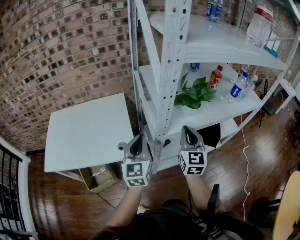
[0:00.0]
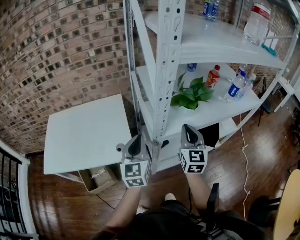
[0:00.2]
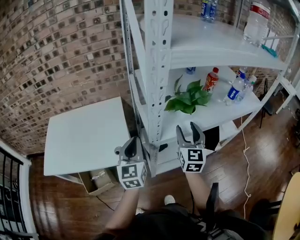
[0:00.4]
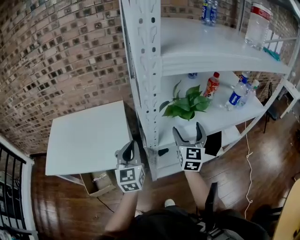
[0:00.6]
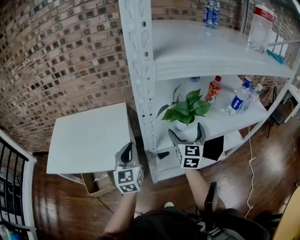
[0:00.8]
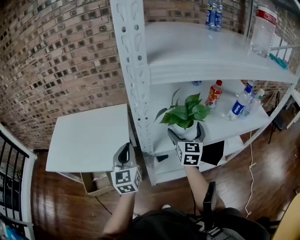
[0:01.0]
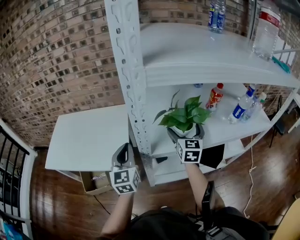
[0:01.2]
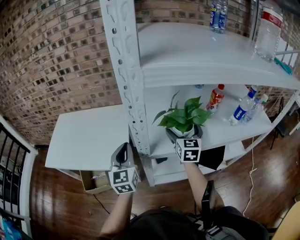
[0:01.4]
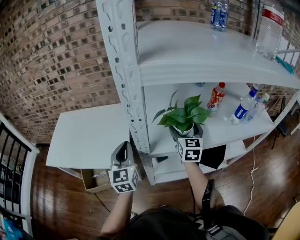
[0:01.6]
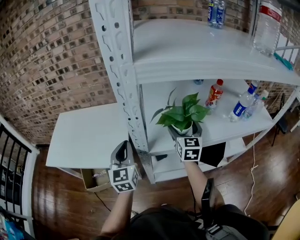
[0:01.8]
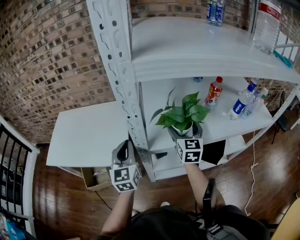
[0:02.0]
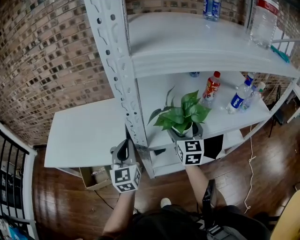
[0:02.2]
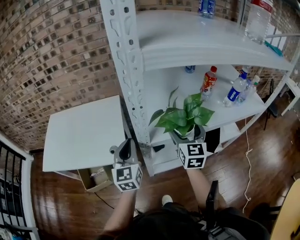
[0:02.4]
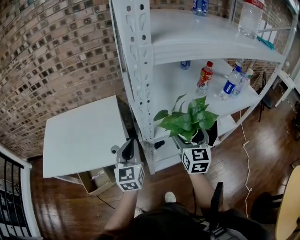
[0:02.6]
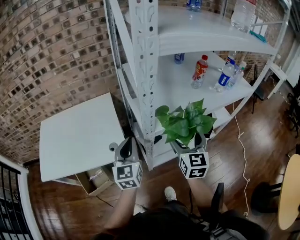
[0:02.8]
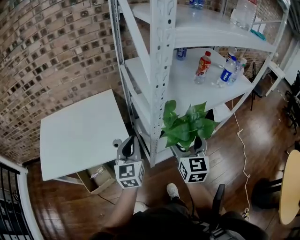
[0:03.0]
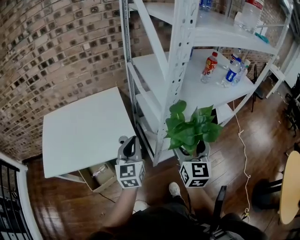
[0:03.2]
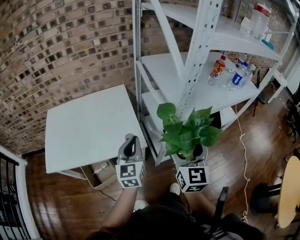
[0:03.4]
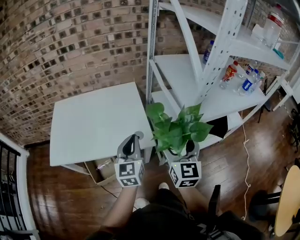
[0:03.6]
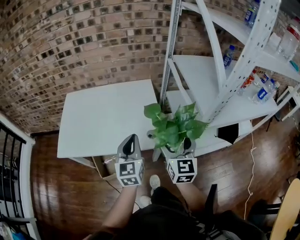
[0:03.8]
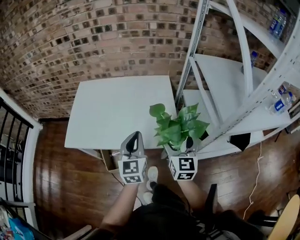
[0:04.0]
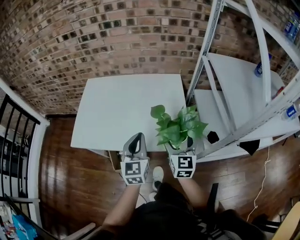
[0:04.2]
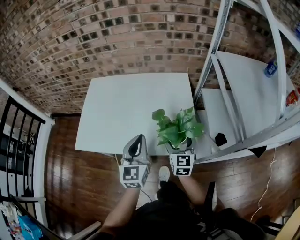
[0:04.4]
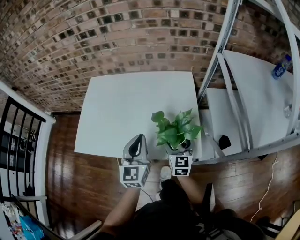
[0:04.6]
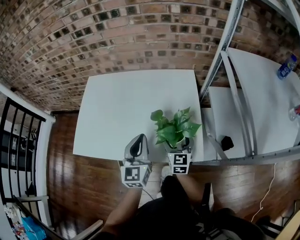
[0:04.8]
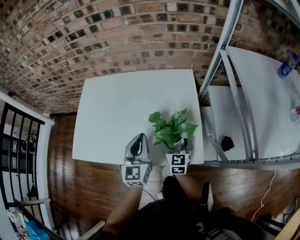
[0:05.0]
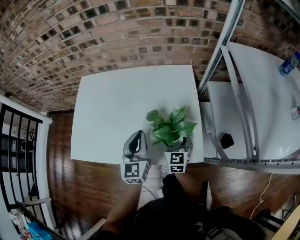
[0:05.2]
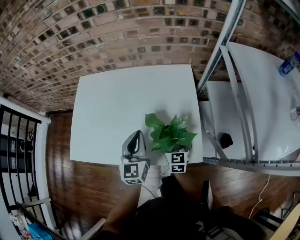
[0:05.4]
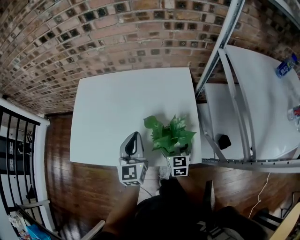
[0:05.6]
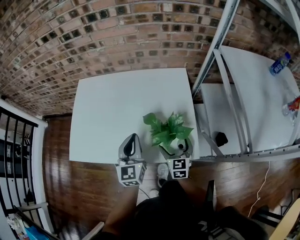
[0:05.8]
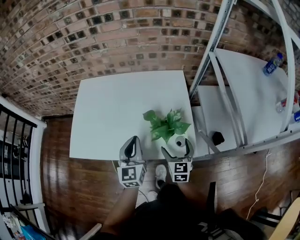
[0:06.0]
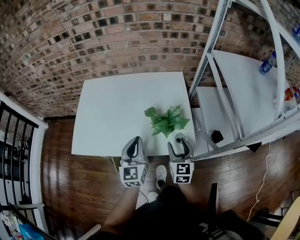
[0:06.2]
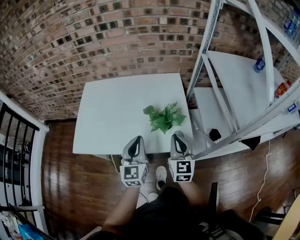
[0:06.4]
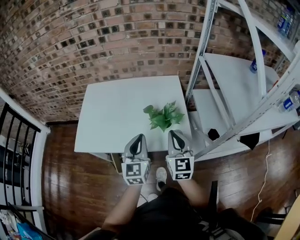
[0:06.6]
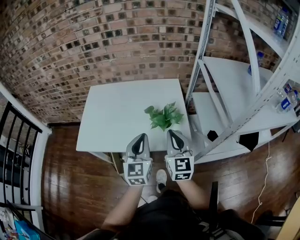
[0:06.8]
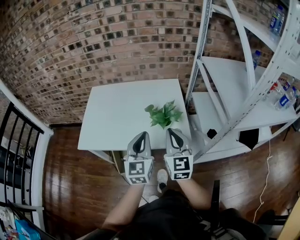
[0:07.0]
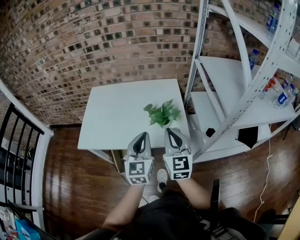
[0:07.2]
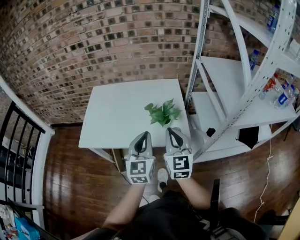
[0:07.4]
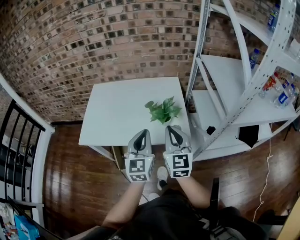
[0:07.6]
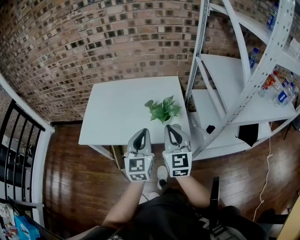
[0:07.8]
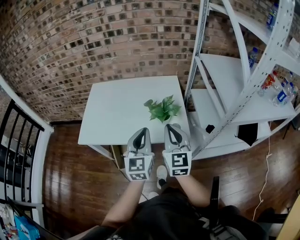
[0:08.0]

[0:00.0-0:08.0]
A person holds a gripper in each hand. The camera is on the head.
0:00.0 to 0:01.6: The right gripper heads forward and to the right, covering some 15 cm, and opens its fingers.
0:01.6 to 0:03.2: The right gripper shifts about 25 cm backward and to the left. Meanwhile the left gripper heads to the left, backward and downward, covering approximately 10 cm, and turns by roughly 20 degrees.
0:03.2 to 0:04.8: The right gripper heads to the left, downward and forward, covering some 50 cm, and turns by some 30 degrees, while the left gripper is displaced to the left and forward by about 30 cm, and turns by roughly 20 degrees.
0:04.8 to 0:06.4: The left gripper moves backward, about 5 cm. Meanwhile the right gripper moves upward and backward, about 15 cm, and closes its fingers.
0:06.4 to 0:08.0: The left gripper is displaced backward and upward by approximately 10 cm; the right gripper moves upward and backward, about 15 cm.

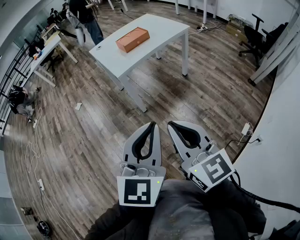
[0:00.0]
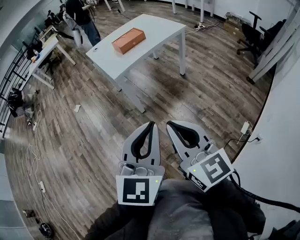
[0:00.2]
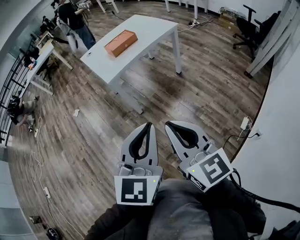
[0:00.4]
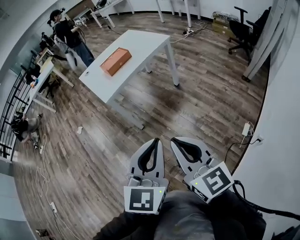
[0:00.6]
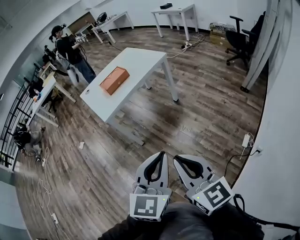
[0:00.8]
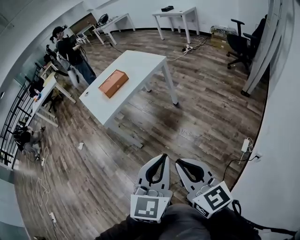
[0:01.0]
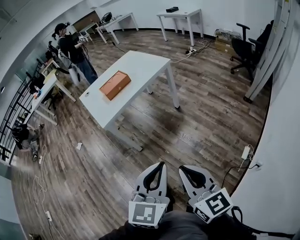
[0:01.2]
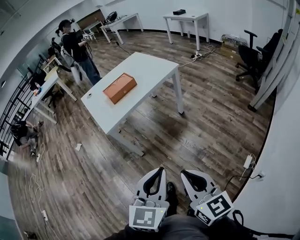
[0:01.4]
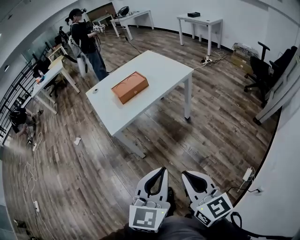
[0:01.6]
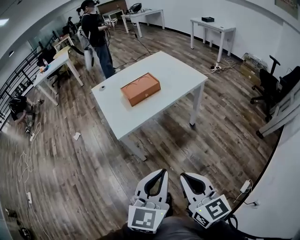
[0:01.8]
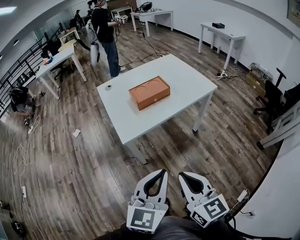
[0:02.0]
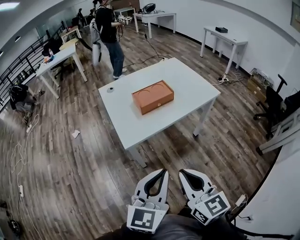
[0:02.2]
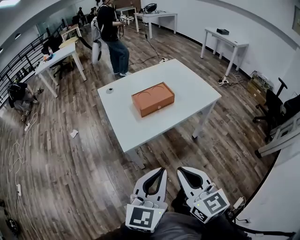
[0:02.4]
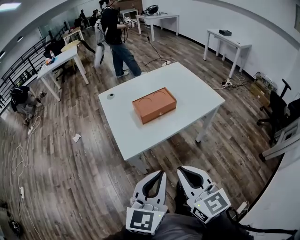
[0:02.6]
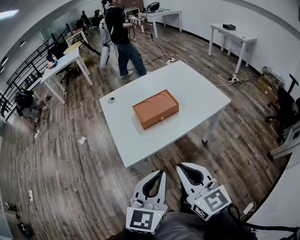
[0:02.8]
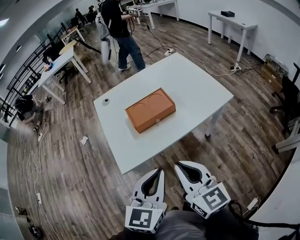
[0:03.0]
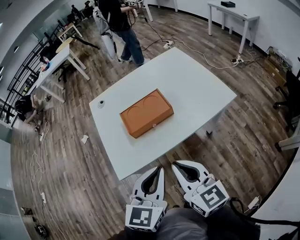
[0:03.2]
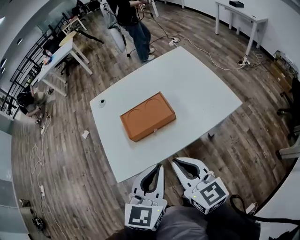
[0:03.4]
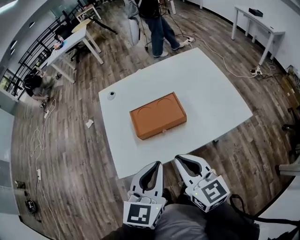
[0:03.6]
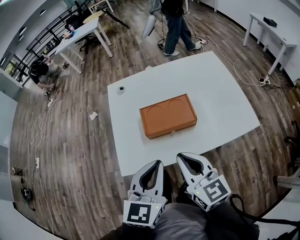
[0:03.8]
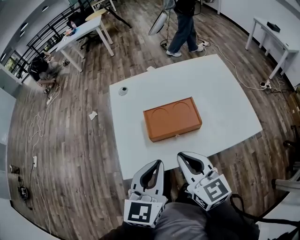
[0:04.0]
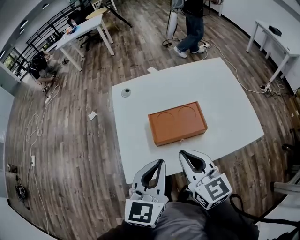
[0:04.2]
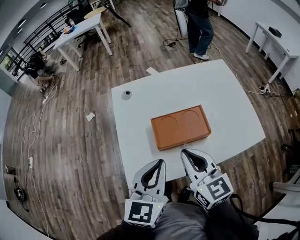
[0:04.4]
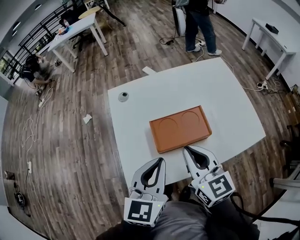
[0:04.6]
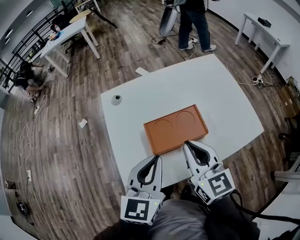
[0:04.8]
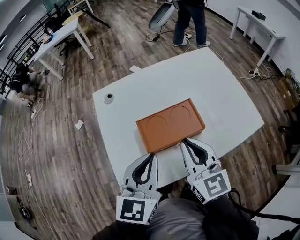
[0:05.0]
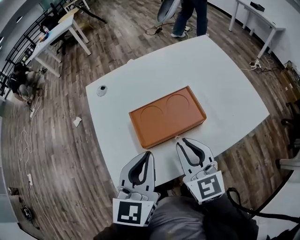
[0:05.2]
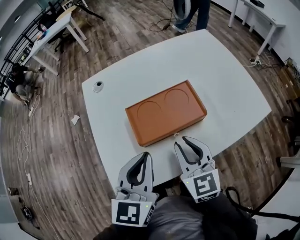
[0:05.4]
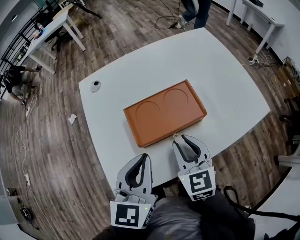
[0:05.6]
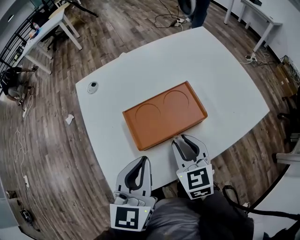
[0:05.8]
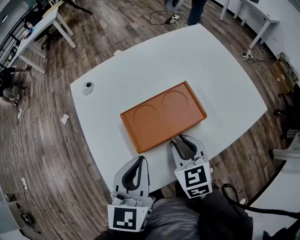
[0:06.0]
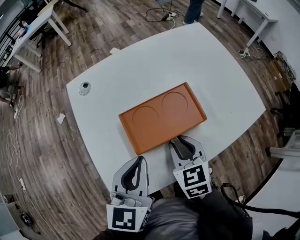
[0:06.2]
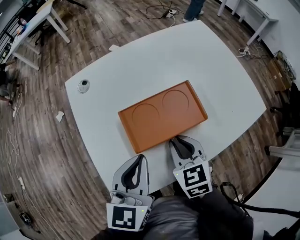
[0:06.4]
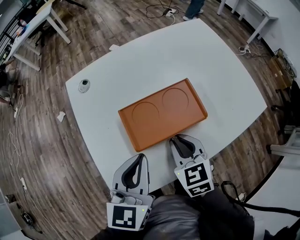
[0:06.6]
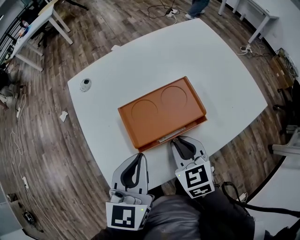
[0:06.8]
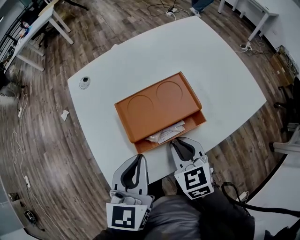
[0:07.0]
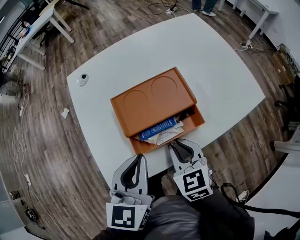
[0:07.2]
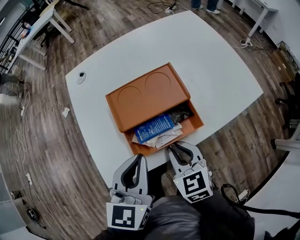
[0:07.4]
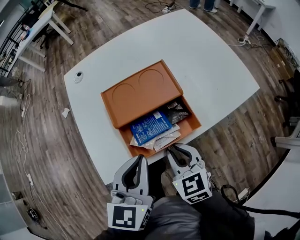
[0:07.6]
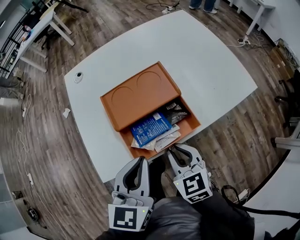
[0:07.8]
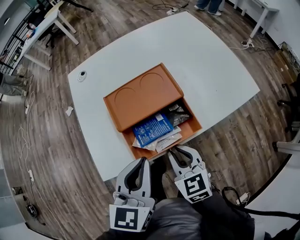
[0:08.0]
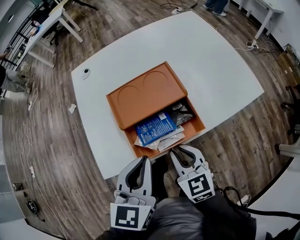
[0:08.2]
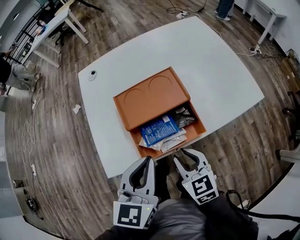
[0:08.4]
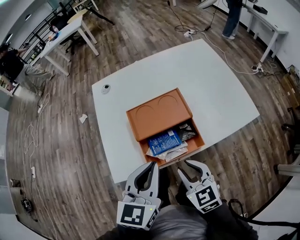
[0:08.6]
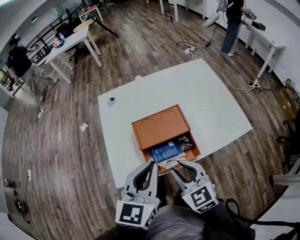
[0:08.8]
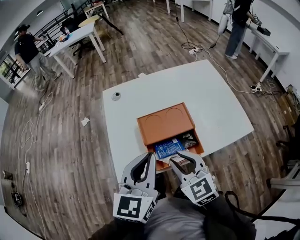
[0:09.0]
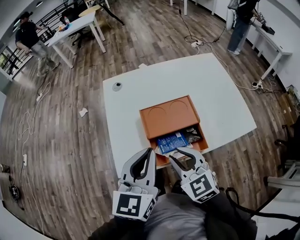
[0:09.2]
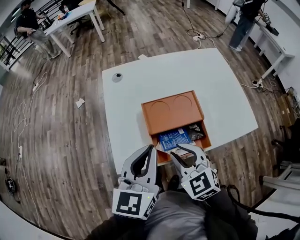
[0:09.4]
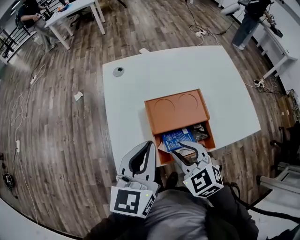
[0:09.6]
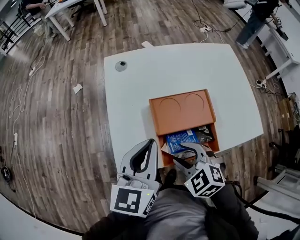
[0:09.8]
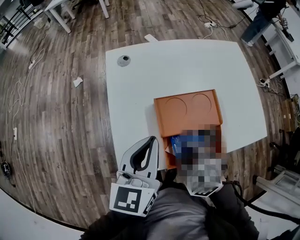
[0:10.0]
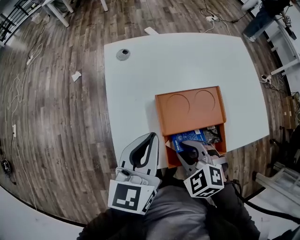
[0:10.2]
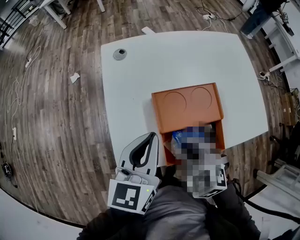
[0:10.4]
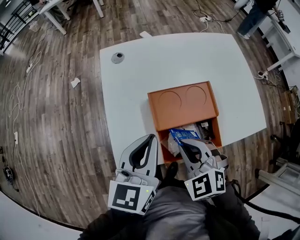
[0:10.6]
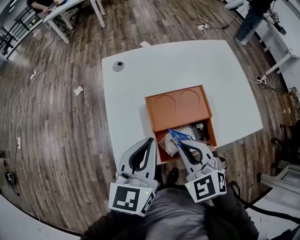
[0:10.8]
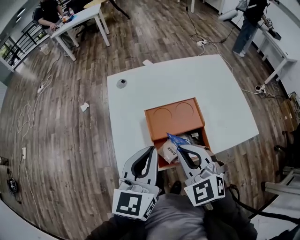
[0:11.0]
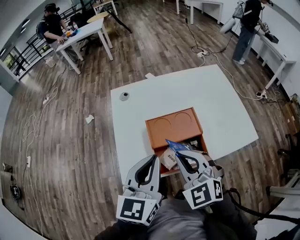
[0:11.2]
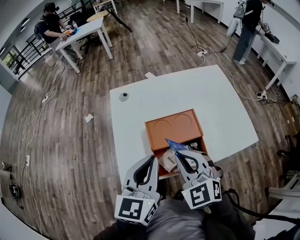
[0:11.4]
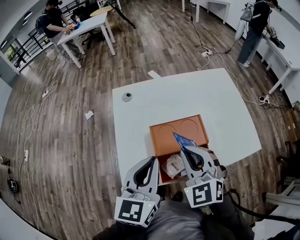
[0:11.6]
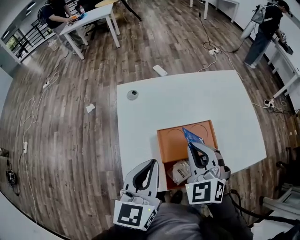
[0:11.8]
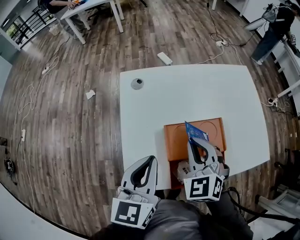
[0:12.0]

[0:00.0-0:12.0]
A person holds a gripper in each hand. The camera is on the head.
0:00.0 to 0:01.6: The left gripper is displaced forward and to the right by approximately 20 cm. The right gripper travels forward, to the right and downward by roughly 20 cm.
0:01.6 to 0:03.0: Both grippers travel together forward, roughly 35 cm.
0:03.0 to 0:04.4: Both grippers travel together forward, approximately 20 cm.
0:04.4 to 0:06.0: The left gripper heads downward, covering about 10 cm. Meanwhile the right gripper is displaced downward by roughly 20 cm, and turns by some 30 degrees.
0:06.0 to 0:07.6: The left gripper travels backward and to the right by roughly 10 cm. The right gripper shifts about 10 cm backward.
0:07.6 to 0:09.0: The grippers both shift upward by approximately 15 cm. The right gripper turns by some 20 degrees.
0:09.0 to 0:10.4: The left gripper is displaced downward, forward and to the left by roughly 15 cm. Meanwhile the right gripper is displaced downward and forward by about 10 cm, and turns by about 30 degrees.
0:10.4 to 0:12.0: The right gripper travels forward and upward by about 15 cm, and rotates approximately 20 degrees.

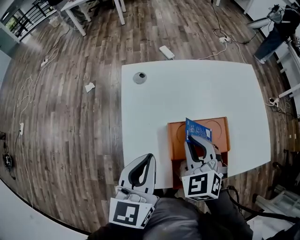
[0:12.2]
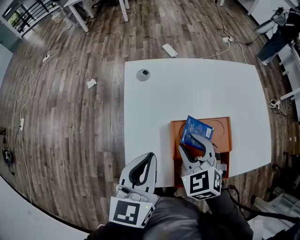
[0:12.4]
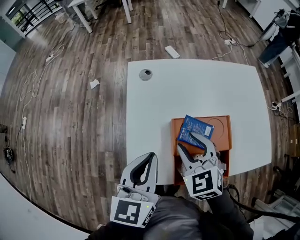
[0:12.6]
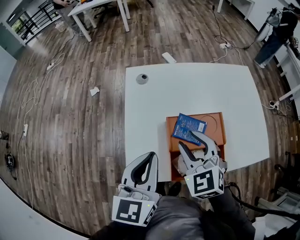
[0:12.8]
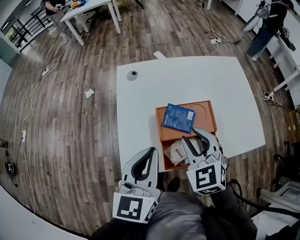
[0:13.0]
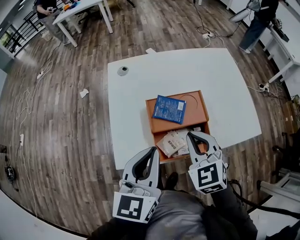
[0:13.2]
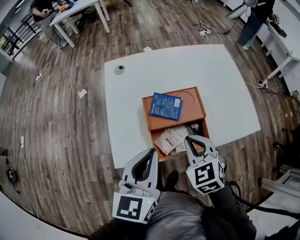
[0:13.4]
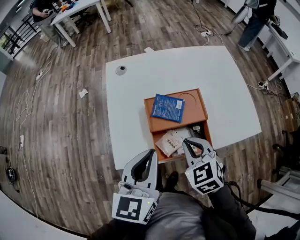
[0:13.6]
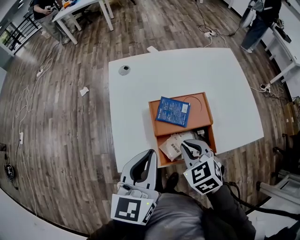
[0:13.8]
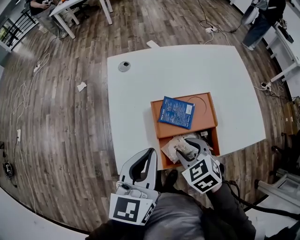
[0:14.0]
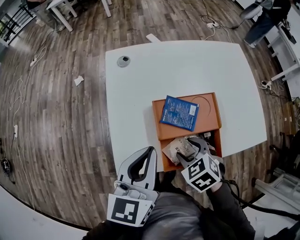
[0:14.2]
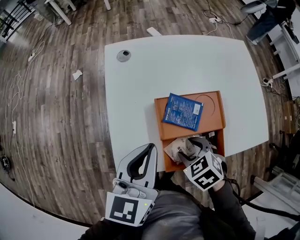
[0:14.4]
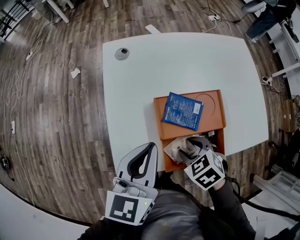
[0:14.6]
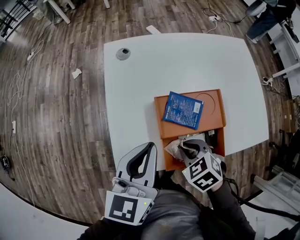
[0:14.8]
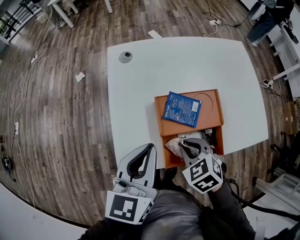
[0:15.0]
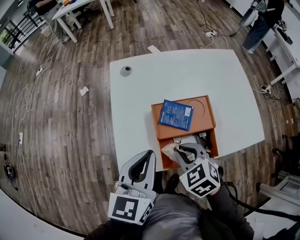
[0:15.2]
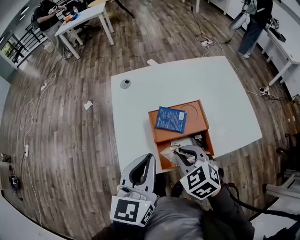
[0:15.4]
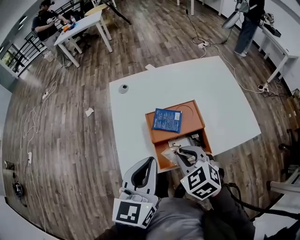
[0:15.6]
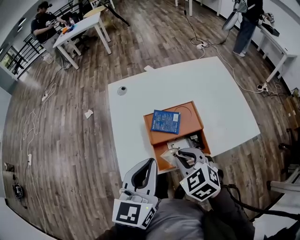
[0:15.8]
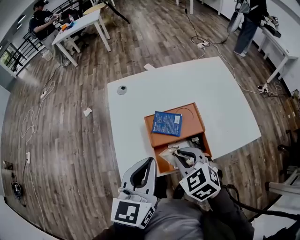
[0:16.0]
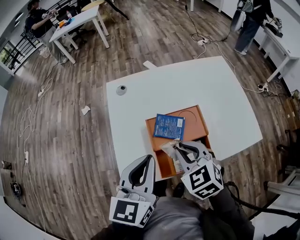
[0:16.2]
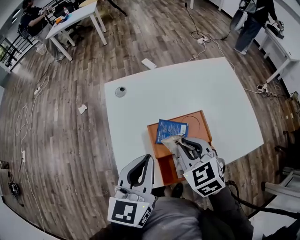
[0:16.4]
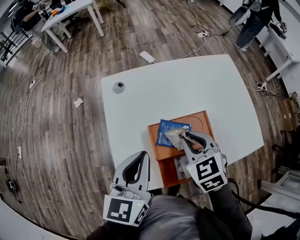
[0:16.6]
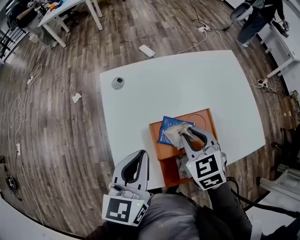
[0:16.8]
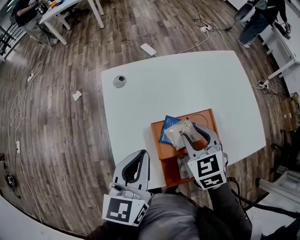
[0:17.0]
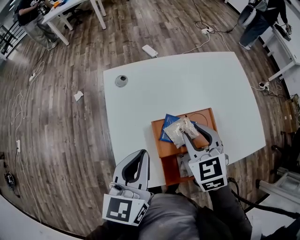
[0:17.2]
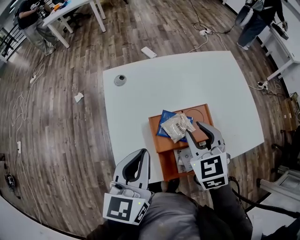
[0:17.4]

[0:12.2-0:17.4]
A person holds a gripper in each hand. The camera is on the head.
0:12.2 to 0:14.0: The left gripper shifts some 5 cm backward, while the right gripper travels backward and downward by some 15 cm, turns by approximately 30 degrees, and opens up.
0:14.0 to 0:15.6: The left gripper moves some 5 cm. Meanwhile the right gripper goes some 5 cm upward.
0:15.6 to 0:17.4: Both grippers travel together forward, about 10 cm.
